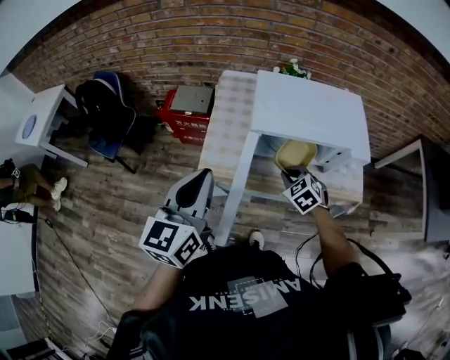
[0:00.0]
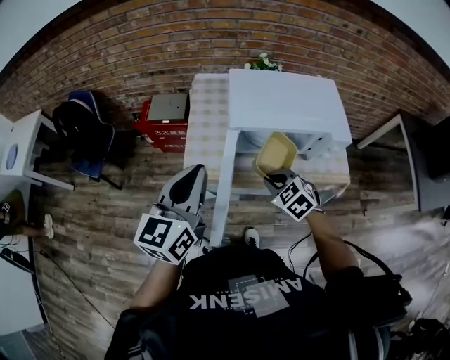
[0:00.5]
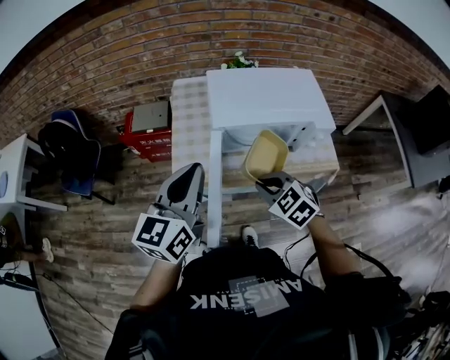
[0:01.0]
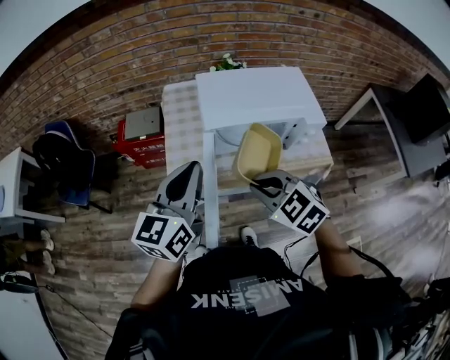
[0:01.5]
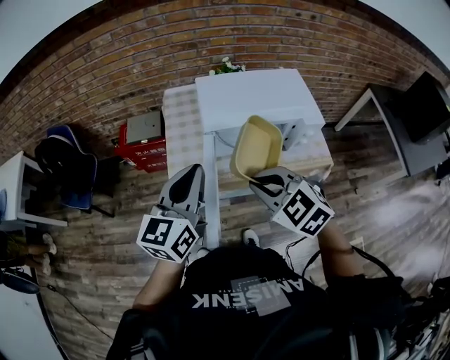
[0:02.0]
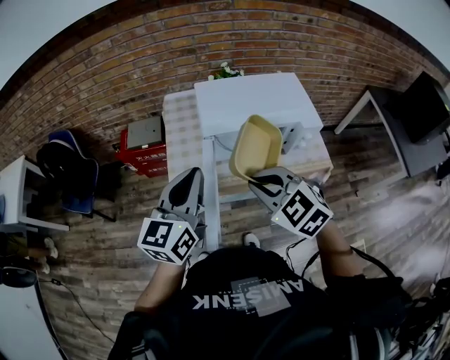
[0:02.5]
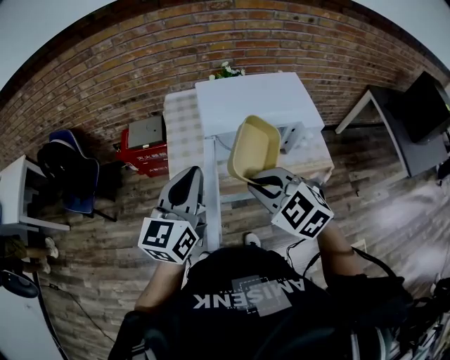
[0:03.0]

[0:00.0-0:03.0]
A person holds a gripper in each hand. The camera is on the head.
0:00.0 to 0:01.5: The right gripper goes about 20 cm upward and backward. Meanwhile the left gripper is displaced to the right by approximately 5 cm.
0:01.5 to 0:03.0: The grippers make only small movements.

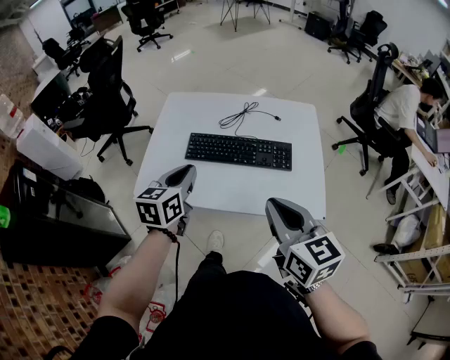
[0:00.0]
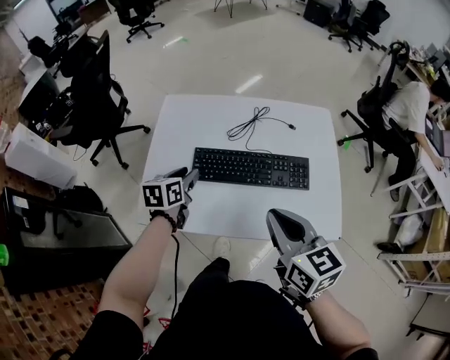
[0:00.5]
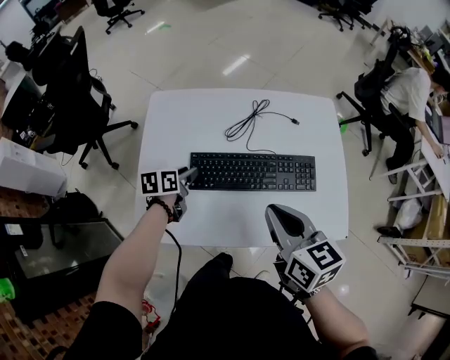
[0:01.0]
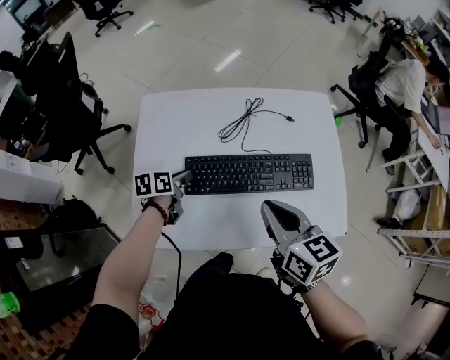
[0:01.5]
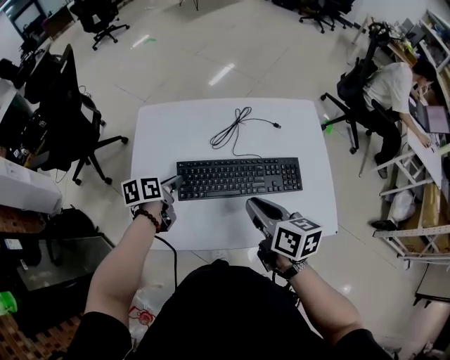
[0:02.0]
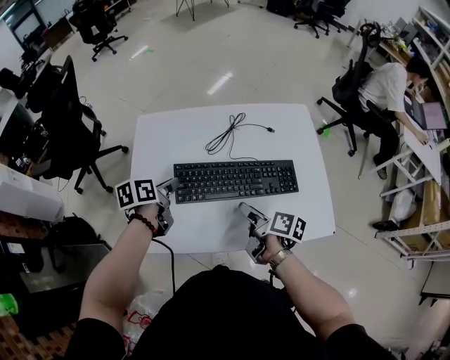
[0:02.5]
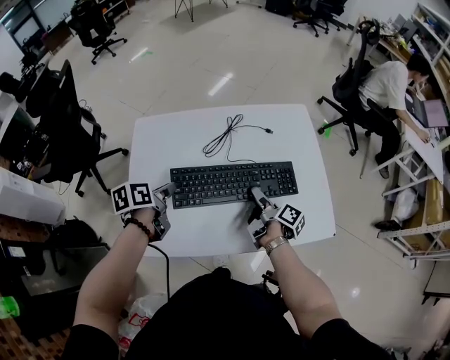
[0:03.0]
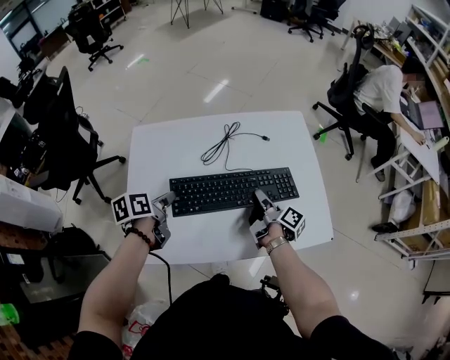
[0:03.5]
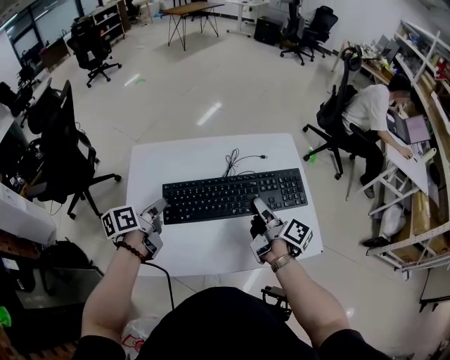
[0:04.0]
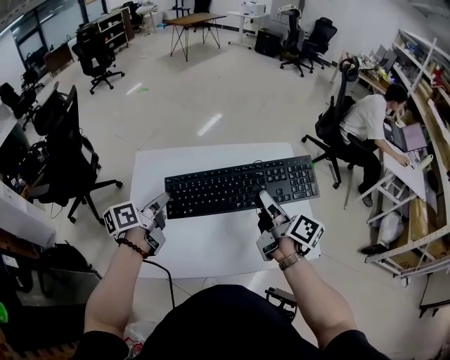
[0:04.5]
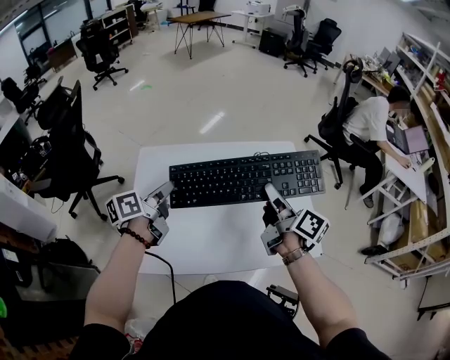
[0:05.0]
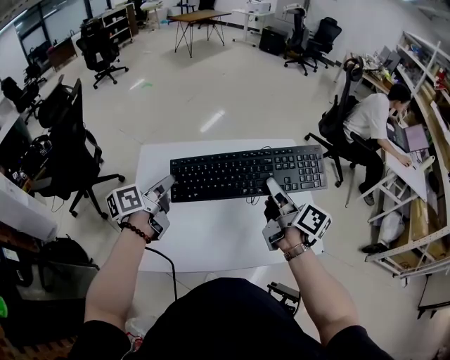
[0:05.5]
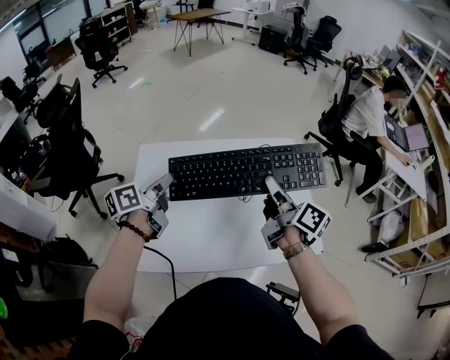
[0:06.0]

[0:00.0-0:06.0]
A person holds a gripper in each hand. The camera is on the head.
0:00.0 to 0:02.0: Both grippers move forward, downward and to the left, about 35 cm. The left gripper swivels about 40 degrees. The right gripper changes its angle by approximately 30 degrees.
0:02.0 to 0:04.0: The left gripper travels upward by approximately 10 cm. The right gripper travels to the right and forward by approximately 10 cm, moves some 15 cm downward and comes back, turns by some 40 degrees, and opens, then closes once more.
0:04.0 to 0:06.0: The right gripper travels upward by about 10 cm. Meanwhile the left gripper travels upward by roughly 5 cm.

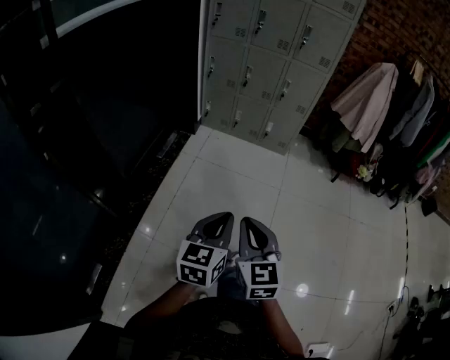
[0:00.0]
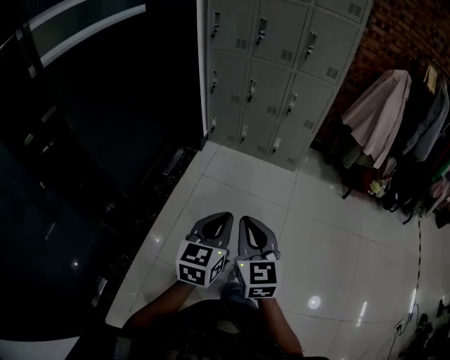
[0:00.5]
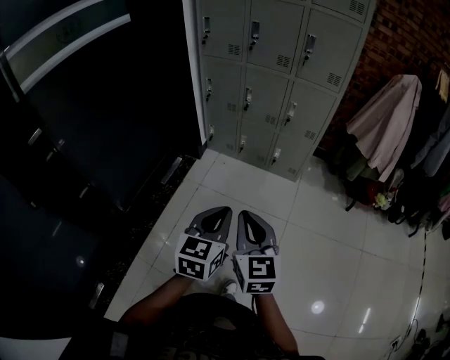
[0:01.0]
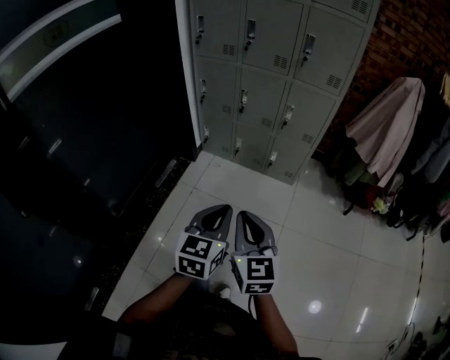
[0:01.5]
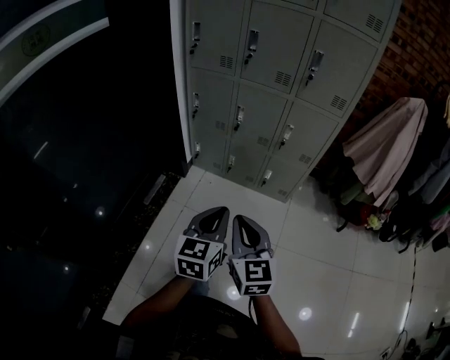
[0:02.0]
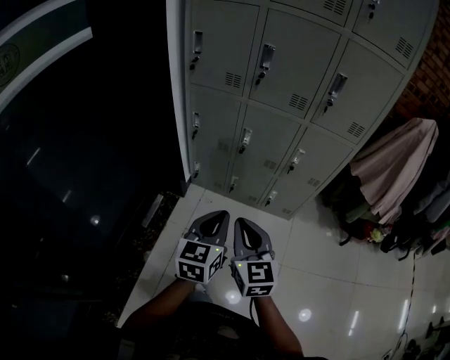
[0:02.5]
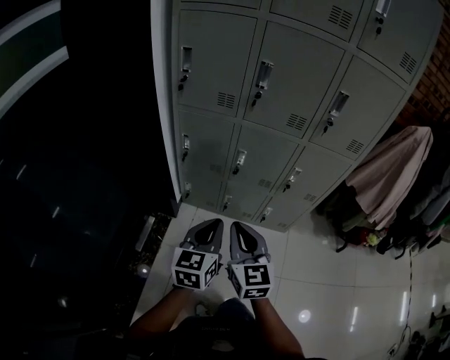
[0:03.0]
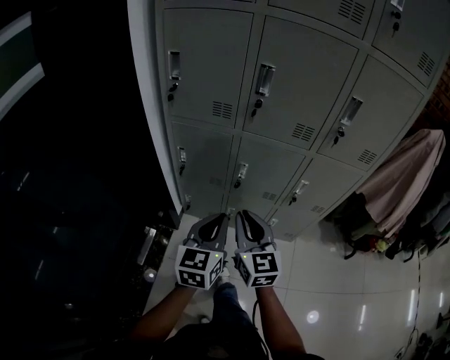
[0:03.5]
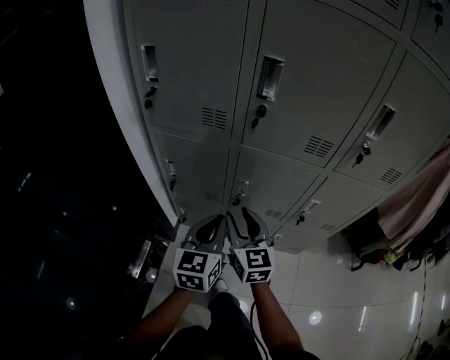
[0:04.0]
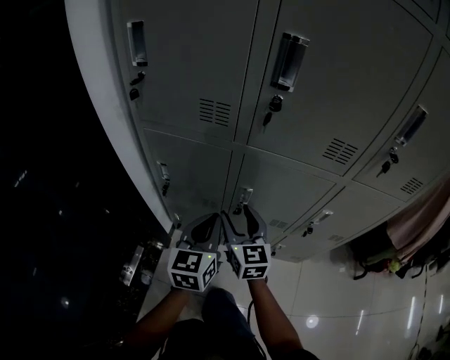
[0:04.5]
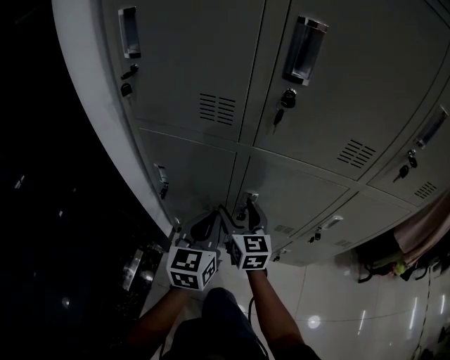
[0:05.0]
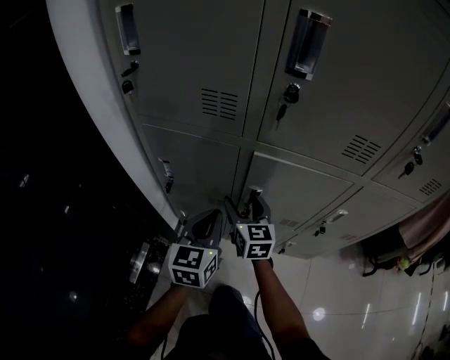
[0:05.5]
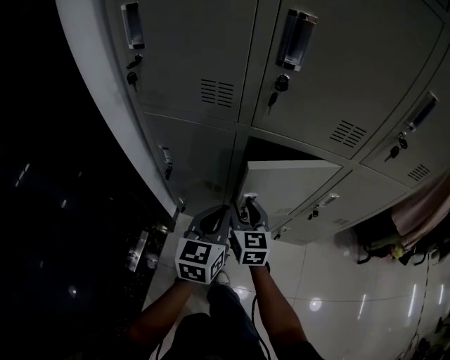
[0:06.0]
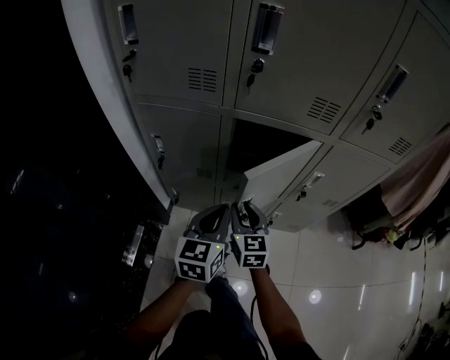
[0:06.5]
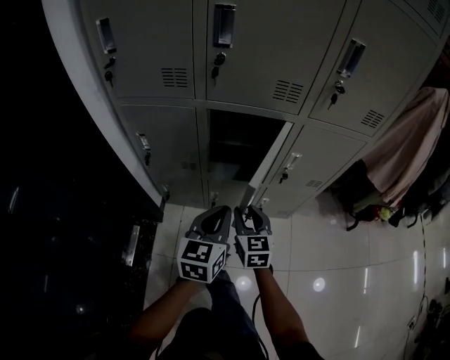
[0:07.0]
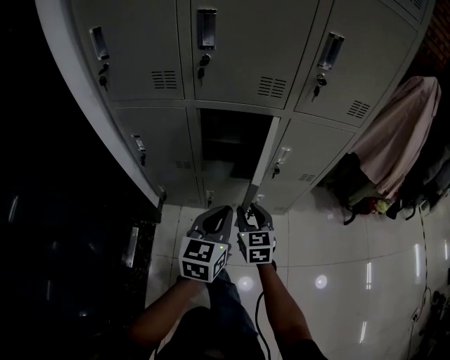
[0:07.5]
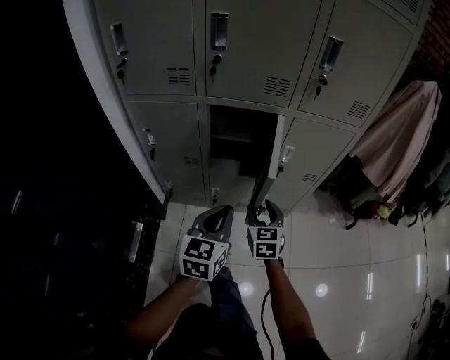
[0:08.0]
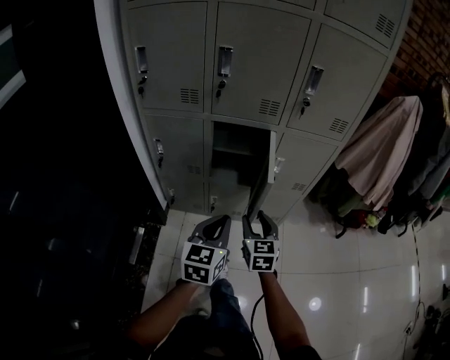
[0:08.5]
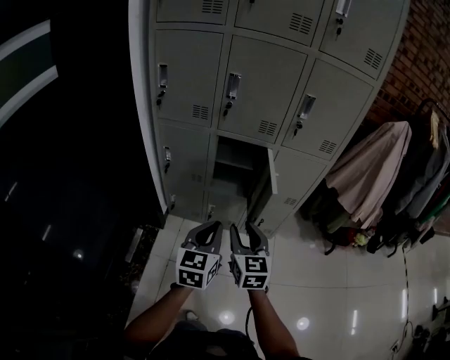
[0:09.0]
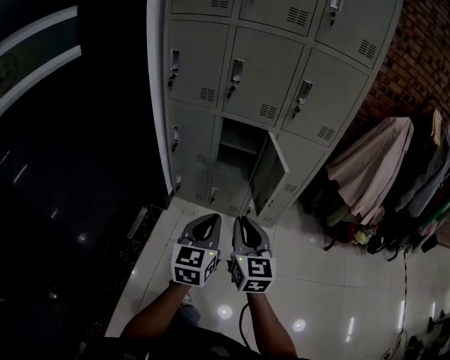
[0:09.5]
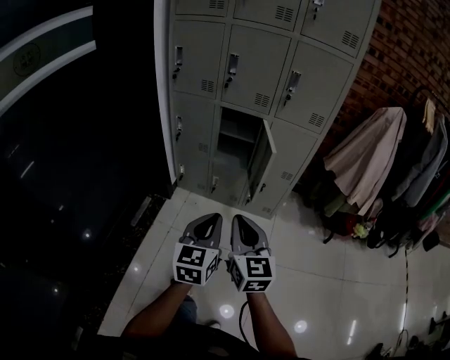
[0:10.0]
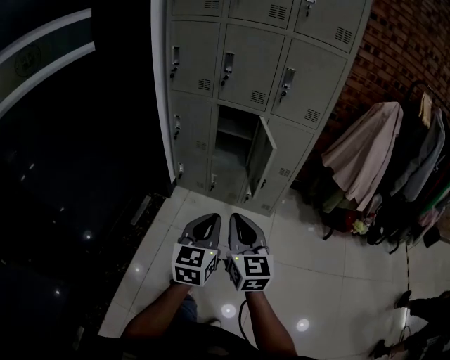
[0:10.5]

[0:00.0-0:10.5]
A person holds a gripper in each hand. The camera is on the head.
0:00.0 to 0:02.0: Both grippers are carried forward, roughly 40 cm.
0:02.0 to 0:04.0: The two grippers travel together, forward, about 50 cm. The right gripper opens up.
0:04.0 to 0:06.5: The right gripper is displaced downward by some 15 cm, reaches roughly 15 cm forward, then returns, and opens and closes again, while the left gripper moves downward, approximately 10 cm, and reaches roughly 10 cm forward, then returns.
0:06.5 to 0:08.5: The right gripper moves backward, to the right and upward, some 25 cm; the left gripper goes roughly 20 cm backward, upward and to the right.
0:08.5 to 0:10.5: The left gripper is displaced backward by approximately 30 cm. The right gripper moves backward and upward, about 40 cm, swivels some 20 degrees, and closes.

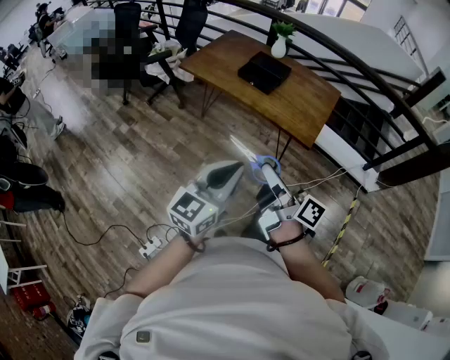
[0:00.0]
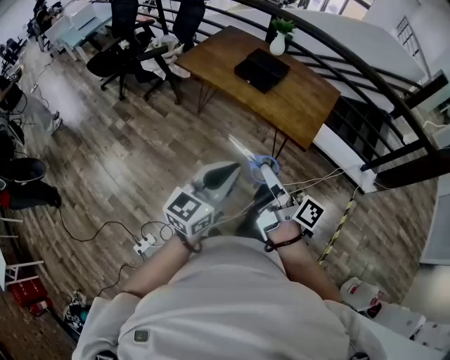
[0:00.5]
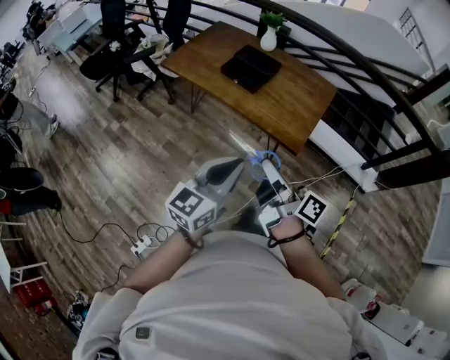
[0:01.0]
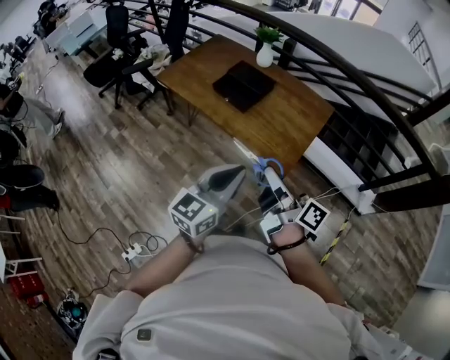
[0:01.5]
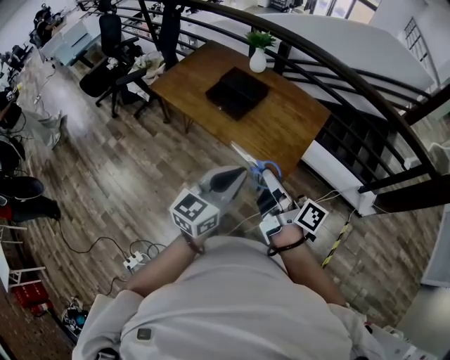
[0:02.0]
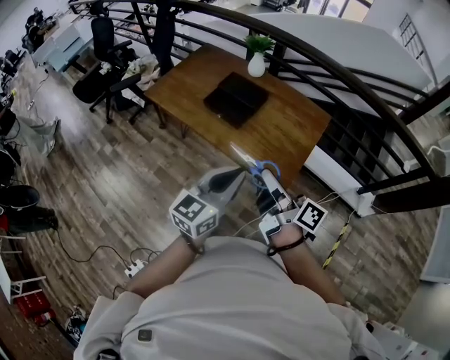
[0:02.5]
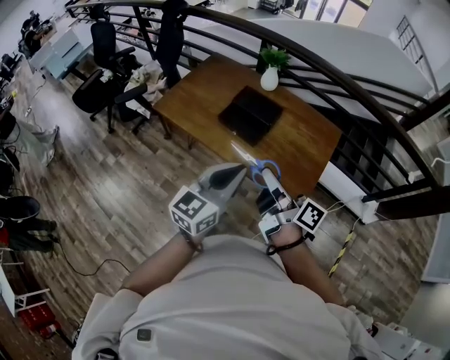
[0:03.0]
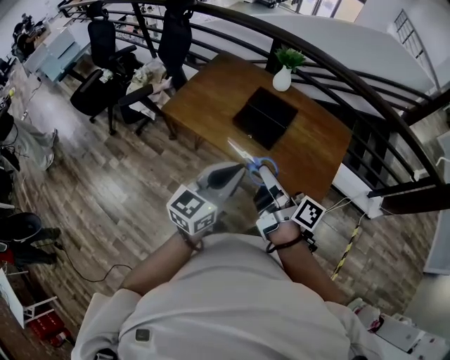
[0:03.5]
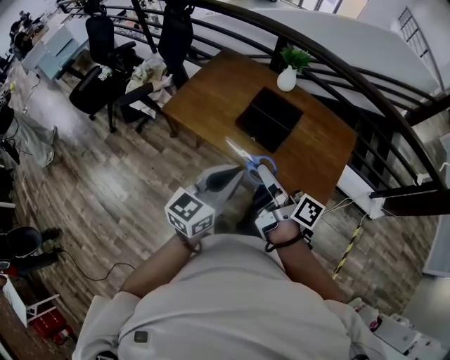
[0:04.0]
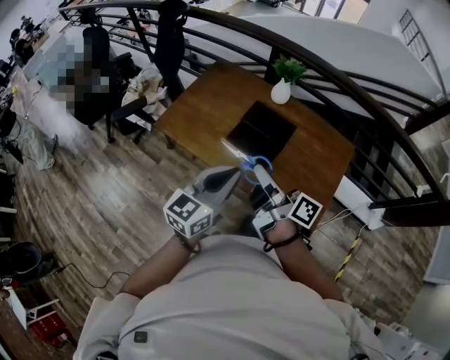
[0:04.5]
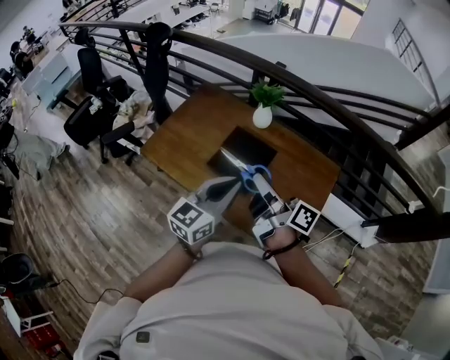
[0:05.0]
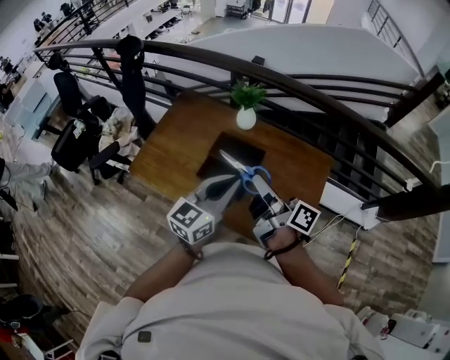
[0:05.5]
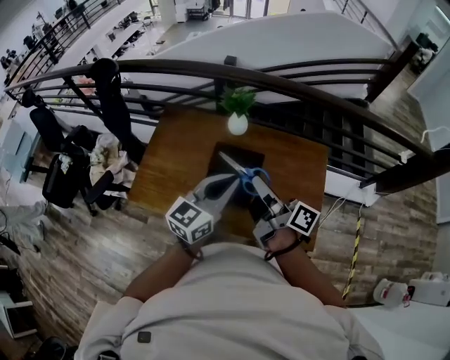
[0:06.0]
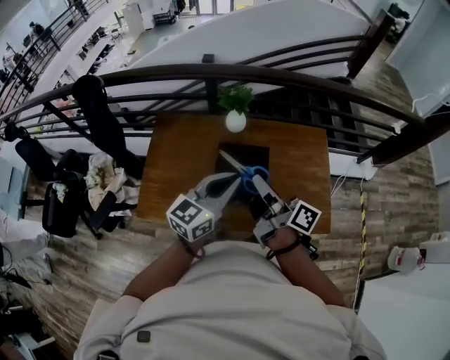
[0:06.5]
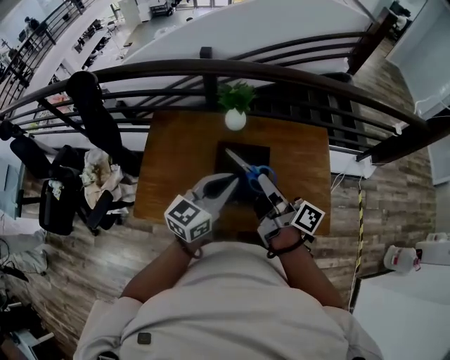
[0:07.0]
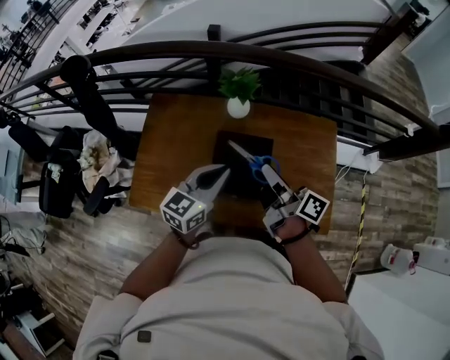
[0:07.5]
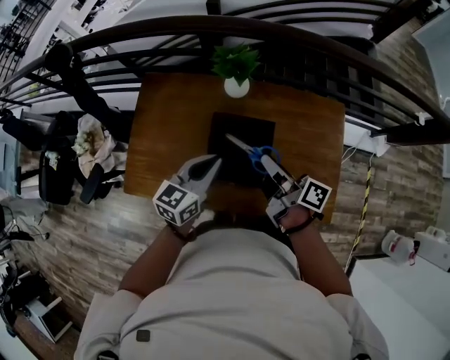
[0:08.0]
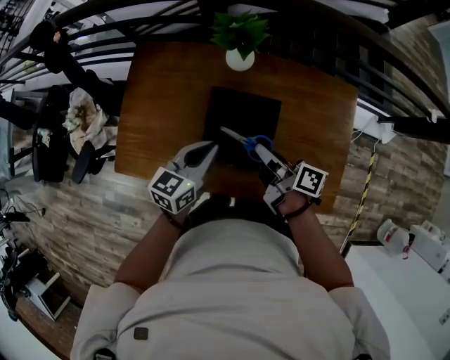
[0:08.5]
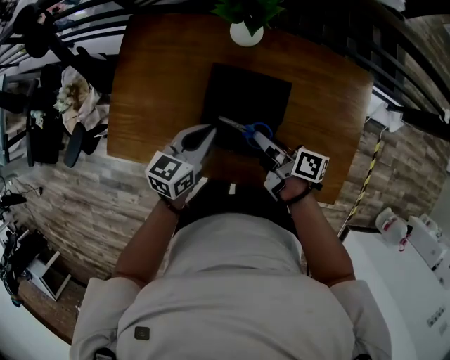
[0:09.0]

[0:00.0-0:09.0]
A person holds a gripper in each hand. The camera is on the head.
0:00.0 to 0:02.0: Both grippers move forward and to the right, roughly 35 cm.
0:02.0 to 0:04.5: The grippers both shift forward and to the left by some 40 cm.
0:04.5 to 0:07.0: The left gripper ends up some 25 cm from where it was, and changes its angle by some 30 degrees. Meanwhile the right gripper ends up roughly 20 cm from where it was, and swivels approximately 30 degrees.
0:07.0 to 0:09.0: Both grippers move downward, roughly 25 cm. The right gripper changes its angle by some 30 degrees; the left gripper swivels some 30 degrees.
